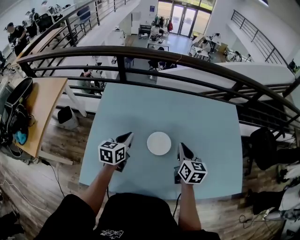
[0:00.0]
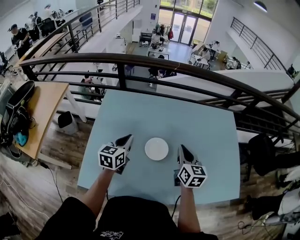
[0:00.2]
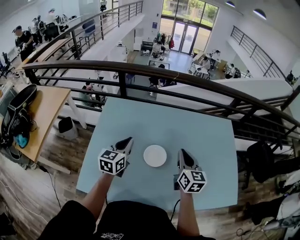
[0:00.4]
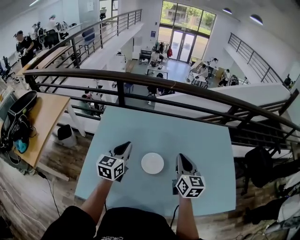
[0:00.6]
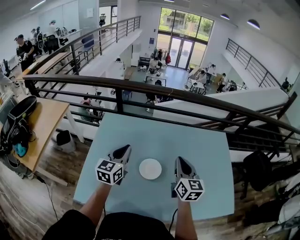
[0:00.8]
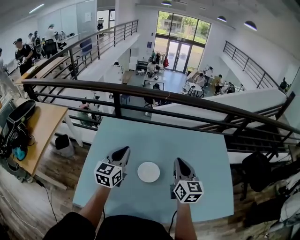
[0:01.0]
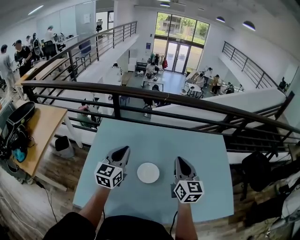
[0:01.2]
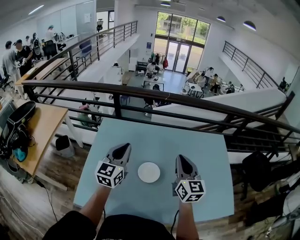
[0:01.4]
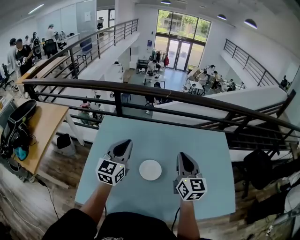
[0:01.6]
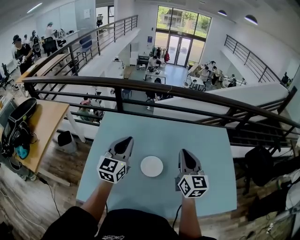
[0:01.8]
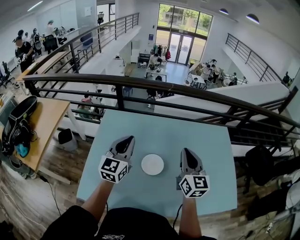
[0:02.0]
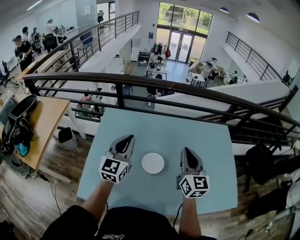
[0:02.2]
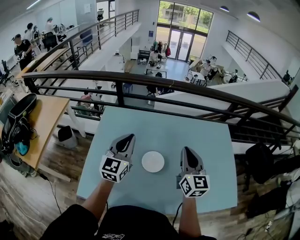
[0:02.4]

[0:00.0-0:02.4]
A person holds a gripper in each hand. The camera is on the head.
0:00.0 to 0:01.2: Both grippers move upward, about 15 cm. The left gripper rotates roughly 30 degrees, while the right gripper changes its angle by roughly 20 degrees.
0:01.2 to 0:02.4: The grippers make only small movements.

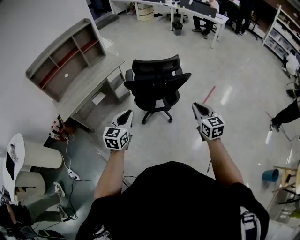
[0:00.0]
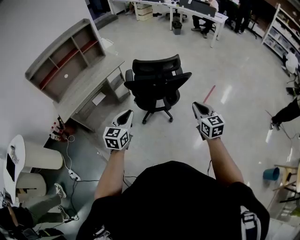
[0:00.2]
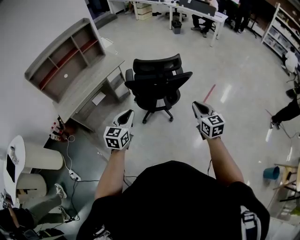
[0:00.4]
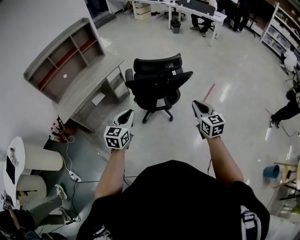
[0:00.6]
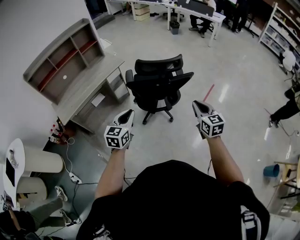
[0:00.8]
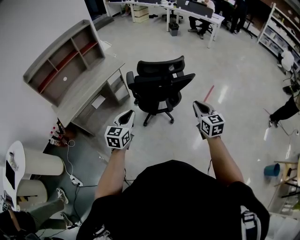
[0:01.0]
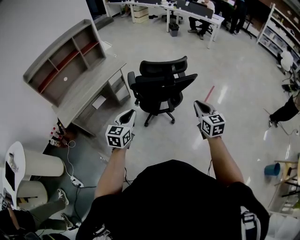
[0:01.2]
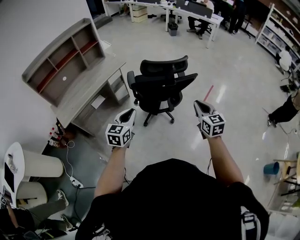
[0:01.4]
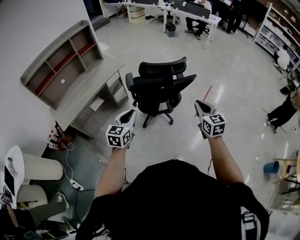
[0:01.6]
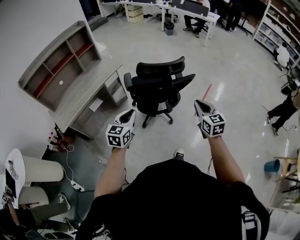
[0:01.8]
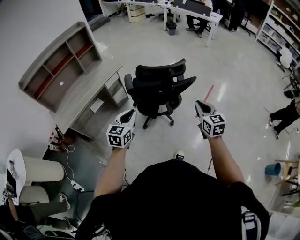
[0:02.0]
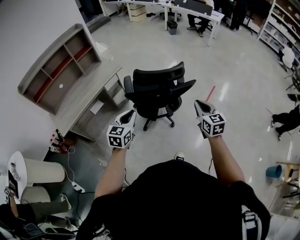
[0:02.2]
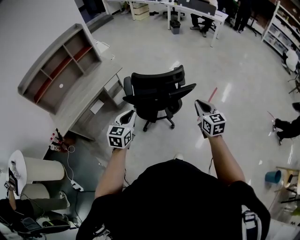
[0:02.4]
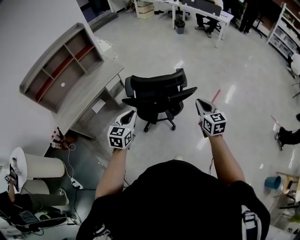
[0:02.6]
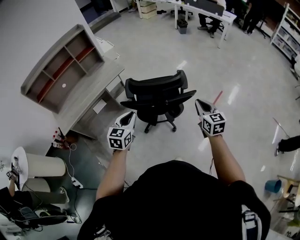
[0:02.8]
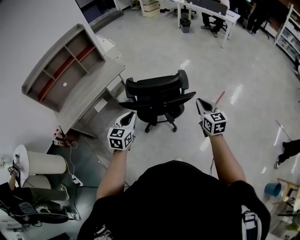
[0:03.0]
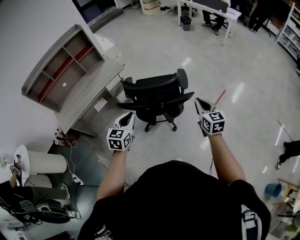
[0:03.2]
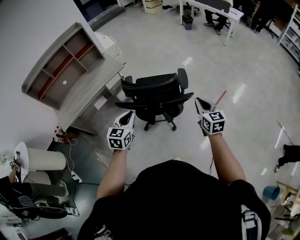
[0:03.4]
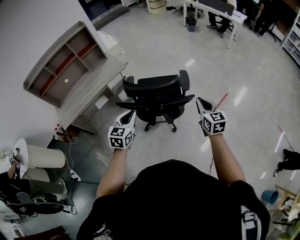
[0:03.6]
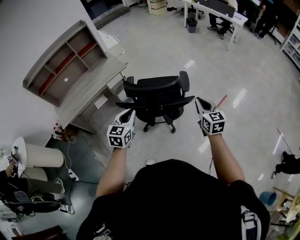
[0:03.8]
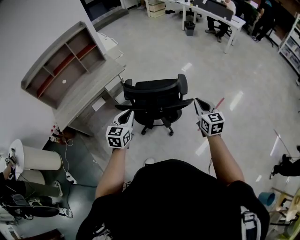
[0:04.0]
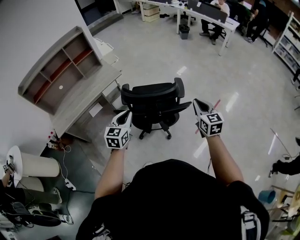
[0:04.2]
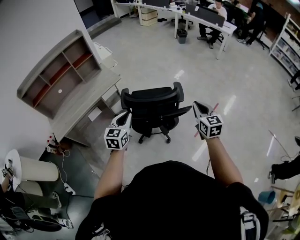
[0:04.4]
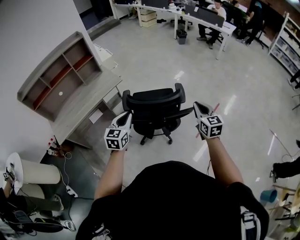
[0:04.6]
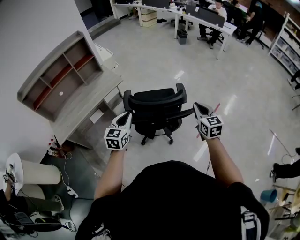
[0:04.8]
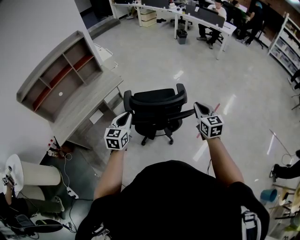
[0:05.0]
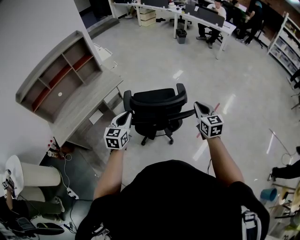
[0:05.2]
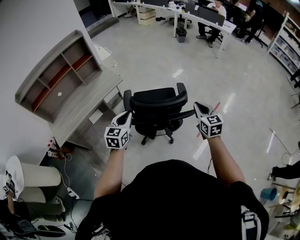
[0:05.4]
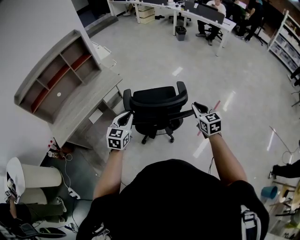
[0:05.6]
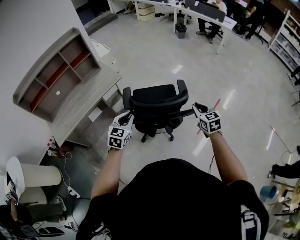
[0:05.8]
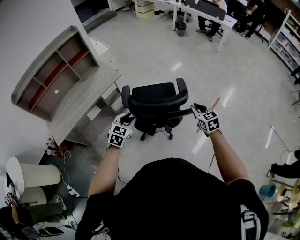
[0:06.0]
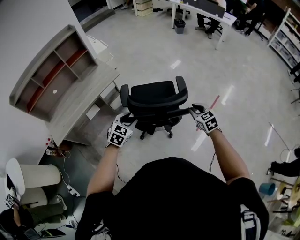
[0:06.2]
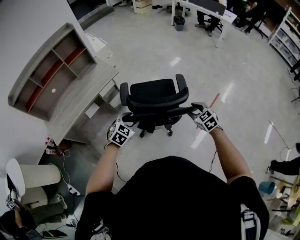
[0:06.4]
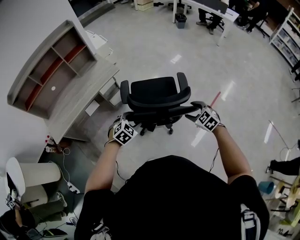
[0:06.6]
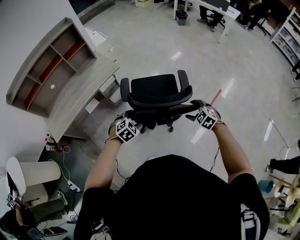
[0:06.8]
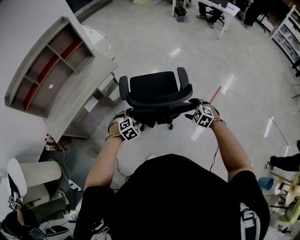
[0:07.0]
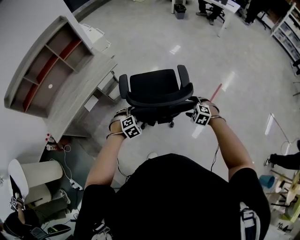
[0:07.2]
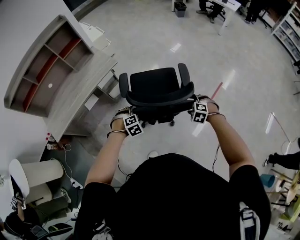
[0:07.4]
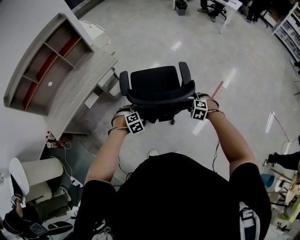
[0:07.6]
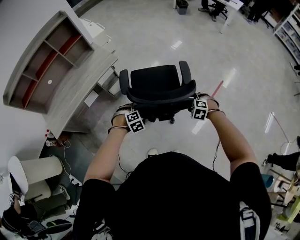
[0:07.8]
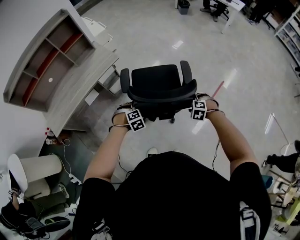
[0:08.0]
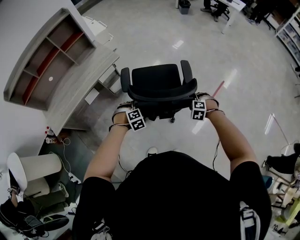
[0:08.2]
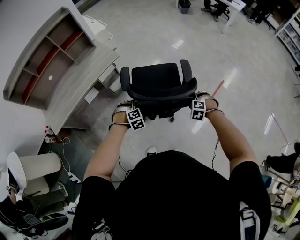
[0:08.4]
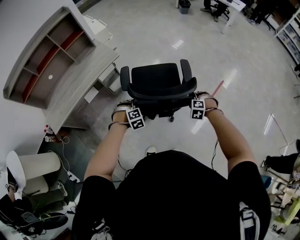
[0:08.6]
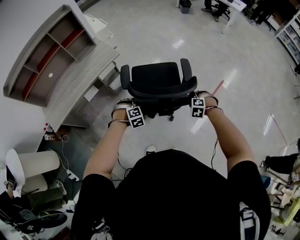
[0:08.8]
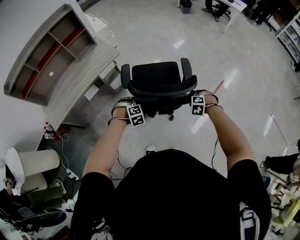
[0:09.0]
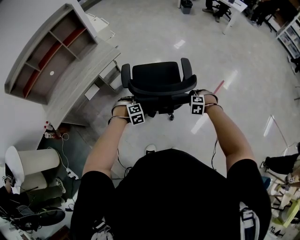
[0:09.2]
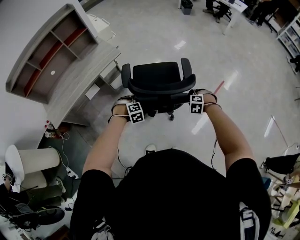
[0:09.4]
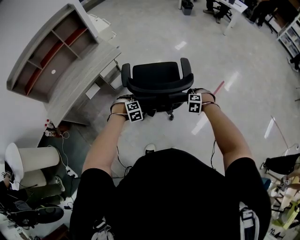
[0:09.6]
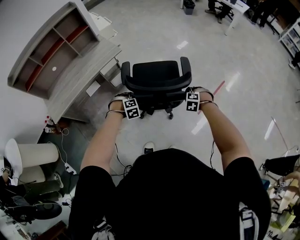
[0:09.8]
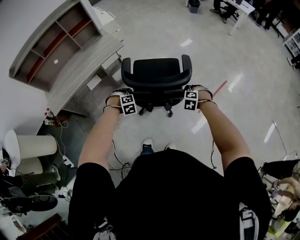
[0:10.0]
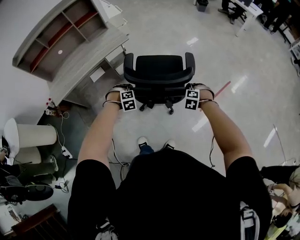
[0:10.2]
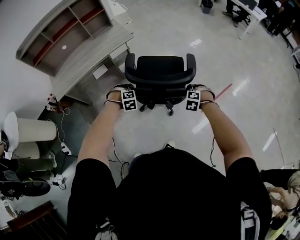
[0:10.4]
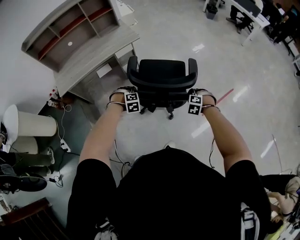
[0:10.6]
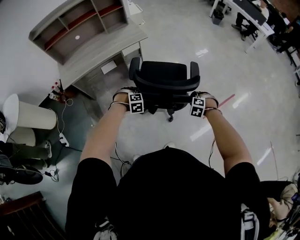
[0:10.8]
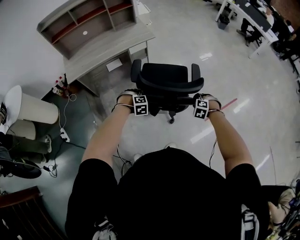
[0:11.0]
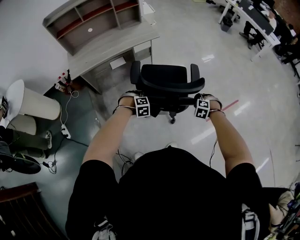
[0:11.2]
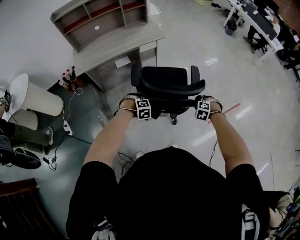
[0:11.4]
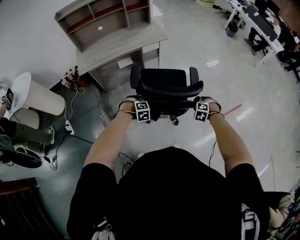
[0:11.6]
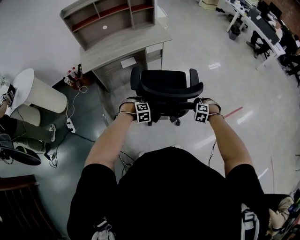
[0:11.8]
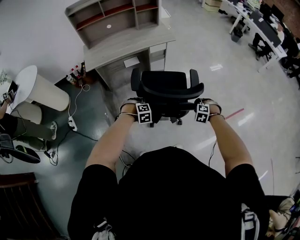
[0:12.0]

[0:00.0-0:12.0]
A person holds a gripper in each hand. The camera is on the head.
0:00.0 to 0:01.6: The grippers both shift to the left by some 10 cm.
0:01.6 to 0:03.0: Both grippers move forward and to the right, approximately 25 cm.
0:03.0 to 0:04.4: The grippers both shift forward by some 5 cm.
0:04.4 to 0:06.0: The two grippers go roughly 10 cm downward and forward. The left gripper rotates approximately 20 degrees.
0:06.0 to 0:07.6: Both grippers travel together downward, approximately 15 cm. The left gripper points its fingers approximately 40 degrees further downward, and opens its fingers. Meanwhile the right gripper points its fingers about 40 degrees further downward, and opens.
0:07.6 to 0:09.0: The left gripper closes; the right gripper closes.
0:09.0 to 0:10.4: The left gripper moves roughly 10 cm.
0:10.4 to 0:12.0: The right gripper is displaced to the left and backward by about 20 cm. The left gripper moves backward and to the left, some 30 cm.

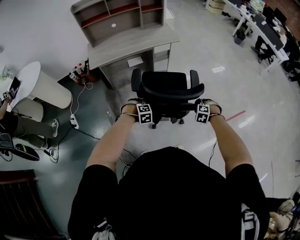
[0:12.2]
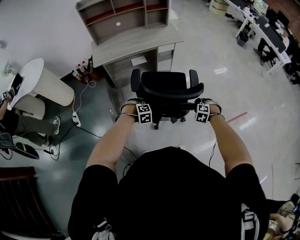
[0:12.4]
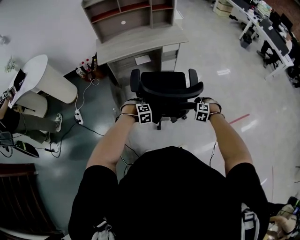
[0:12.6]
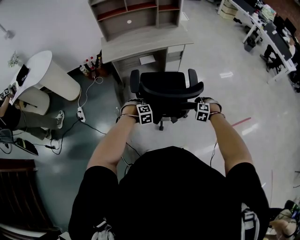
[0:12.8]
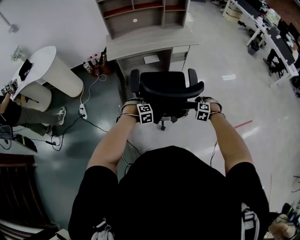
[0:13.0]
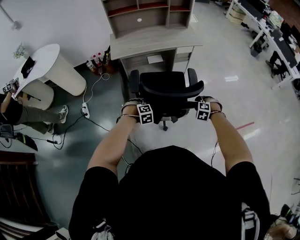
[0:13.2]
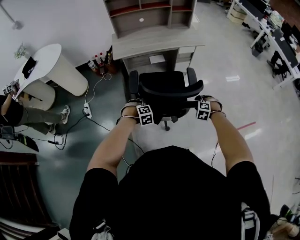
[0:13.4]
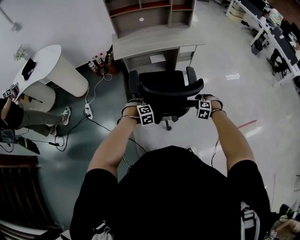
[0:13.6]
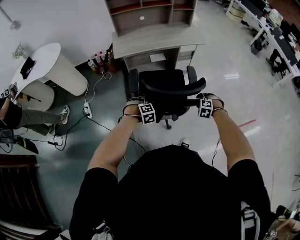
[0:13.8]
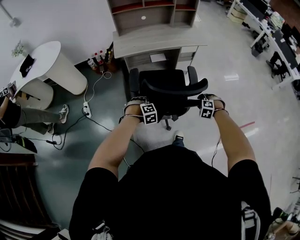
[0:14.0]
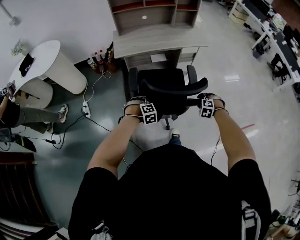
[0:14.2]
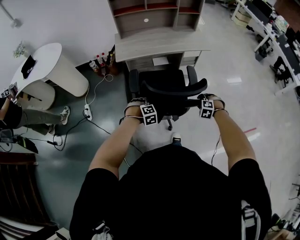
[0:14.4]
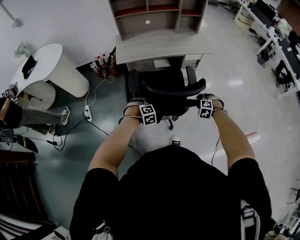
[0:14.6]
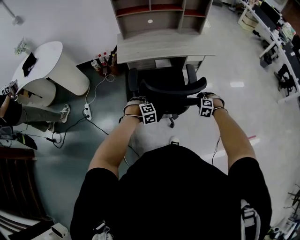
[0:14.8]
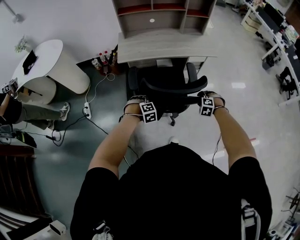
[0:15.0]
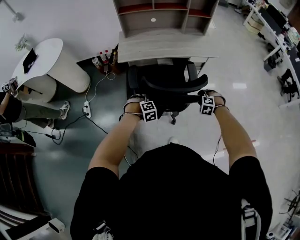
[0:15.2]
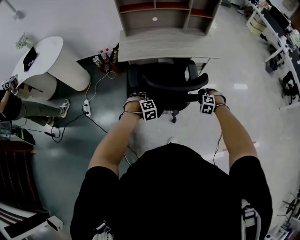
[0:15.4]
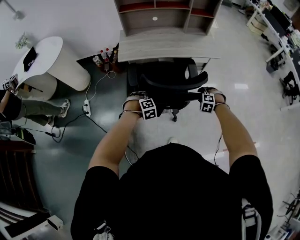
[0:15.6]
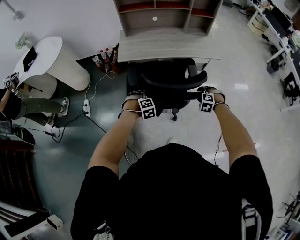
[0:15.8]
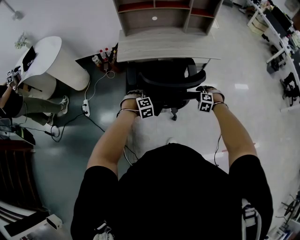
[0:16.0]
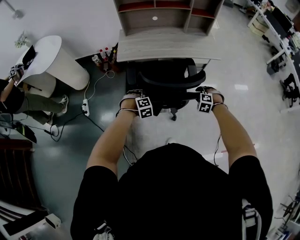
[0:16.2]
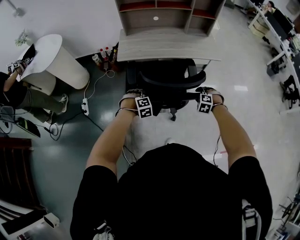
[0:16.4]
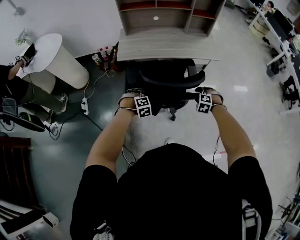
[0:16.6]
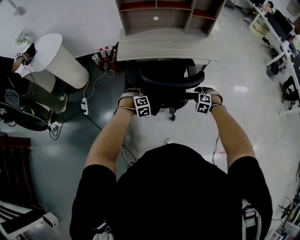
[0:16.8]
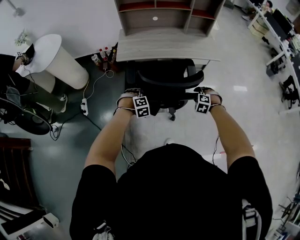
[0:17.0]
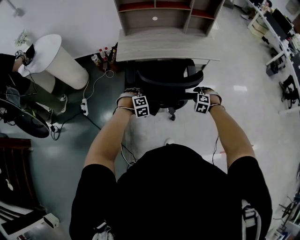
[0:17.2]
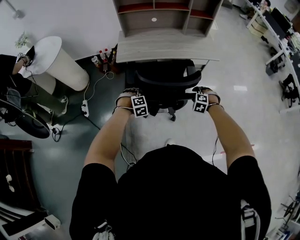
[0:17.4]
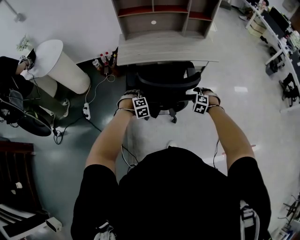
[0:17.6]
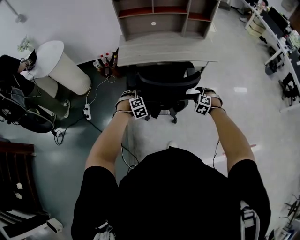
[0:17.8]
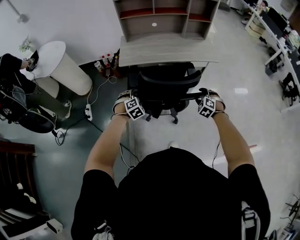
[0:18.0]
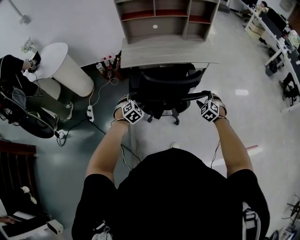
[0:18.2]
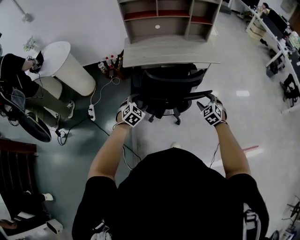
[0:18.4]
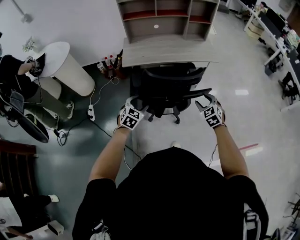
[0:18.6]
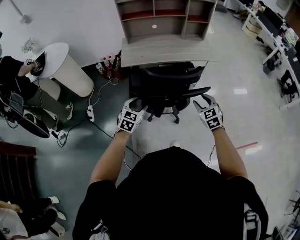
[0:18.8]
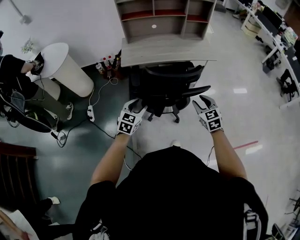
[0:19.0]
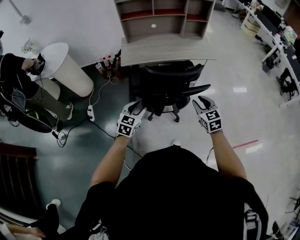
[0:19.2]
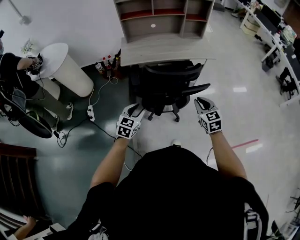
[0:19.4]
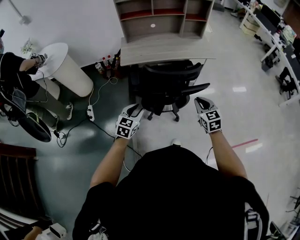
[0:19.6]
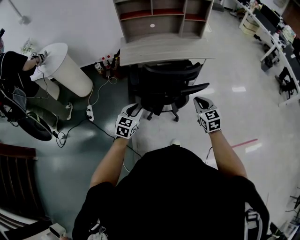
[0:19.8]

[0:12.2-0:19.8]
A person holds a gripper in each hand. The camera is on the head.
0:12.2 to 0:13.8: The grippers both shift to the left by about 20 cm.
0:13.8 to 0:15.2: Both grippers move forward, roughly 20 cm.
0:15.2 to 0:16.8: The grippers both shift forward by about 5 cm.
0:16.8 to 0:18.2: The grippers both shift upward by some 10 cm. The left gripper changes its angle by approximately 30 degrees, and opens its fingers; the right gripper rotates about 30 degrees.
0:18.2 to 0:19.8: The right gripper travels backward, upward and to the left by approximately 15 cm, swivels approximately 40 degrees, and closes its fingers. The left gripper moves backward and upward, about 15 cm, rotates some 40 degrees, and closes its fingers.

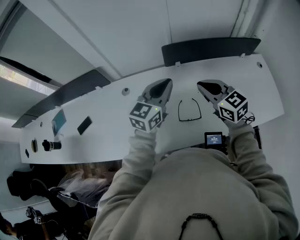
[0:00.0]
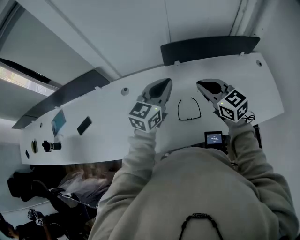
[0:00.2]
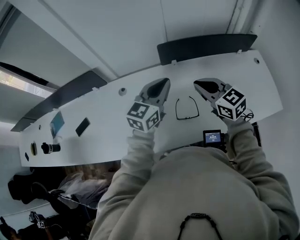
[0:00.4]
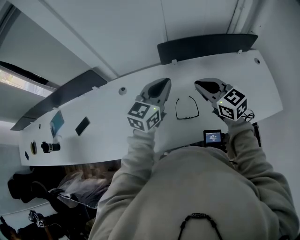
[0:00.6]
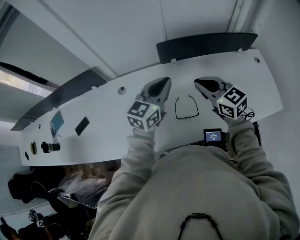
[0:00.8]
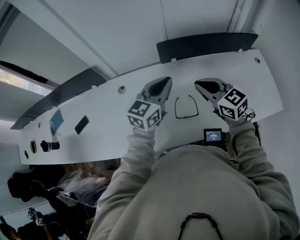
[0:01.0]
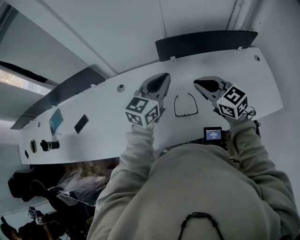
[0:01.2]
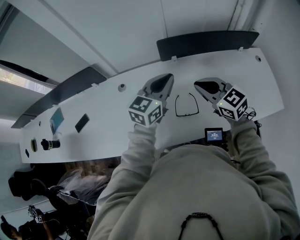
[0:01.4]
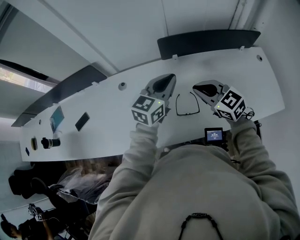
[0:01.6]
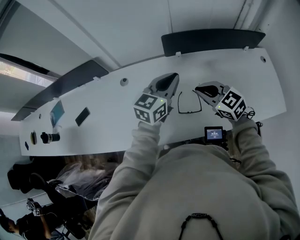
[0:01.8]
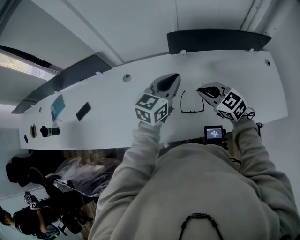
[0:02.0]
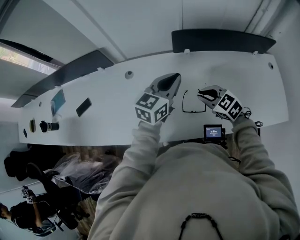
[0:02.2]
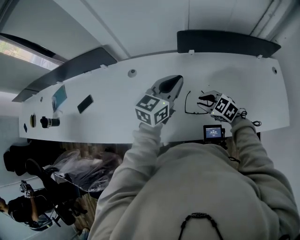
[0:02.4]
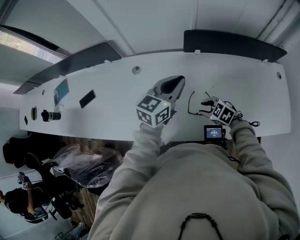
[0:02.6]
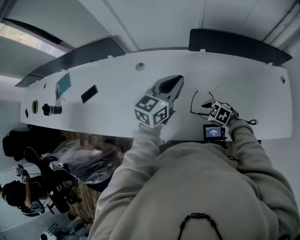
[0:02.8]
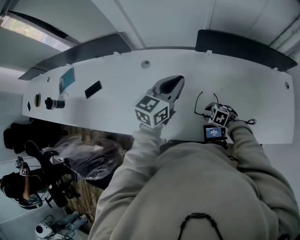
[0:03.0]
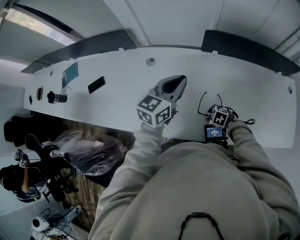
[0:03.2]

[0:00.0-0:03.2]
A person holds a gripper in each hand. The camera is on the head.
0:00.0 to 0:01.6: There are only small adjustments of the grippers.
0:01.6 to 0:03.2: The left gripper changes place by approximately 10 cm. Meanwhile the right gripper travels downward by approximately 30 cm, points its fingers roughly 50 degrees further downward, and opens up.
